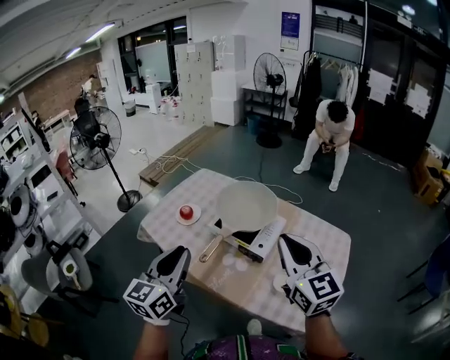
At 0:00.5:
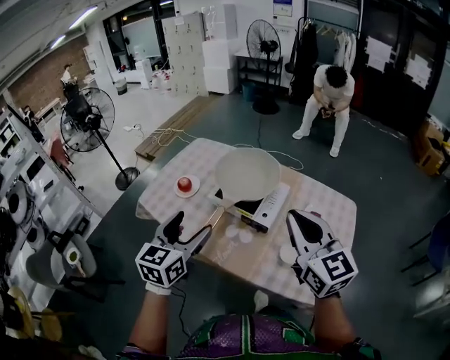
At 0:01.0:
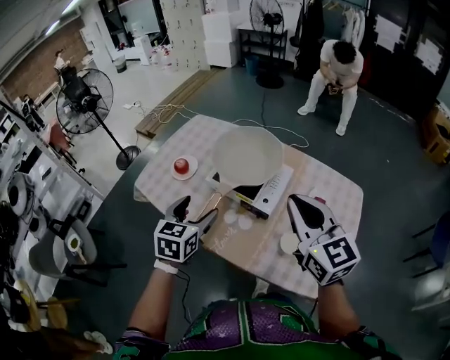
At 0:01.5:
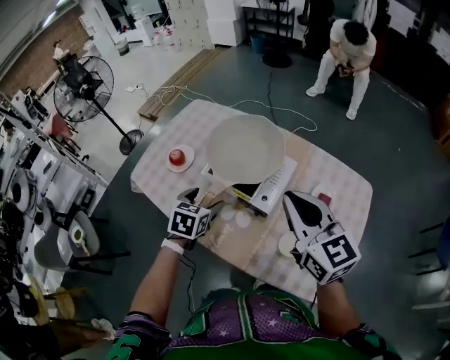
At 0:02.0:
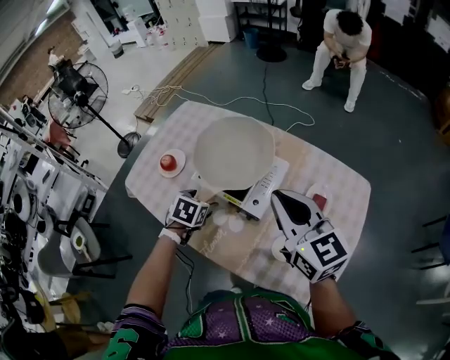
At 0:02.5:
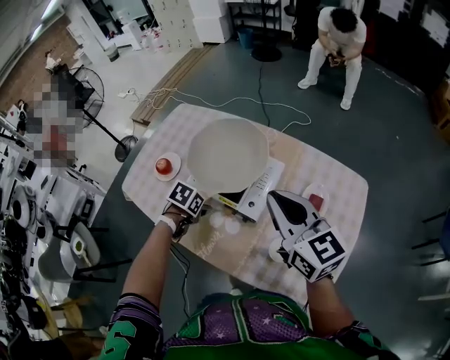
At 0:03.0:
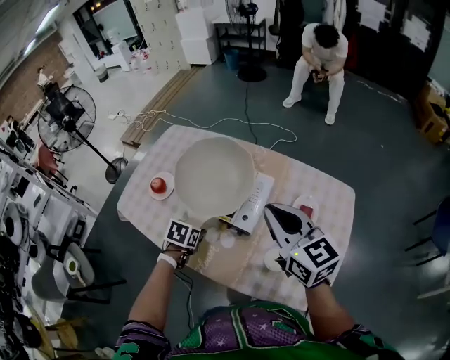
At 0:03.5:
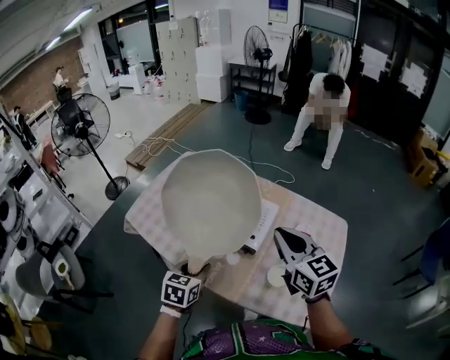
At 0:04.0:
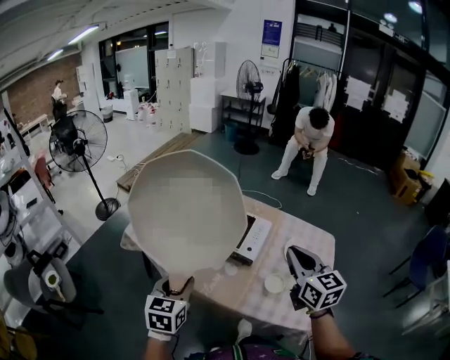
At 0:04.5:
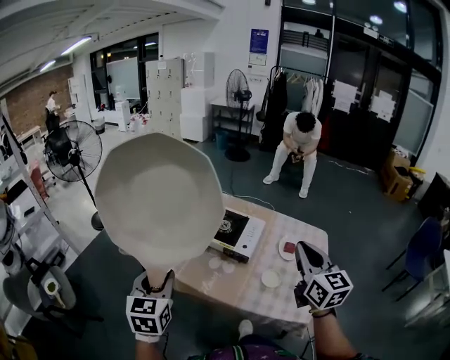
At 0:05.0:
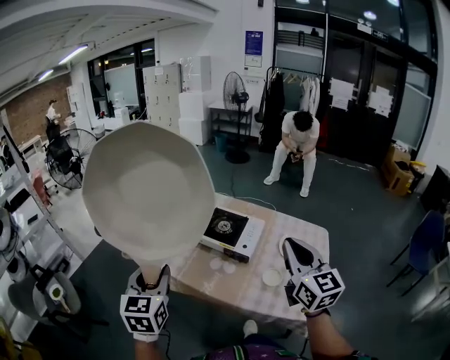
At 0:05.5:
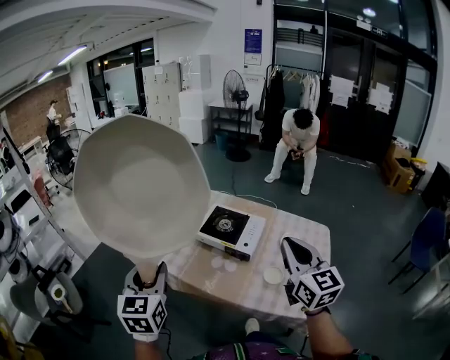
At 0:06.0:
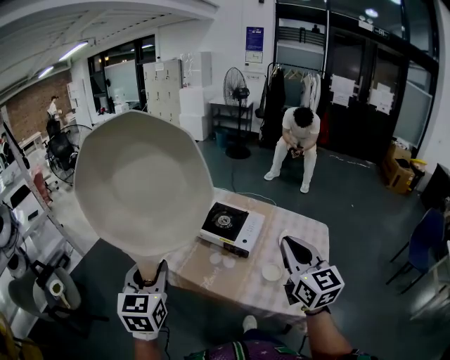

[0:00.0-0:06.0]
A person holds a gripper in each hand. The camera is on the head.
0:00.0 to 0:02.0: The left gripper goes roughly 40 cm downward and forward, tilts its fingers about 60 degrees downward, and opens; the right gripper goes roughly 20 cm forward, downward and to the right.
0:02.0 to 0:04.0: The right gripper is displaced backward by approximately 20 cm, while the left gripper is displaced backward and upward by approximately 35 cm, tilts its fingers about 40 degrees upward, and closes.
0:04.0 to 0:06.0: The left gripper travels upward, backward and to the left by some 15 cm. Meanwhile the right gripper is displaced backward and upward by about 10 cm.

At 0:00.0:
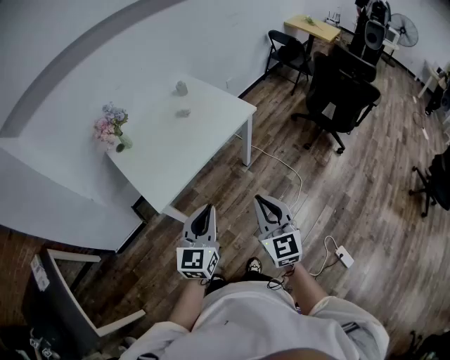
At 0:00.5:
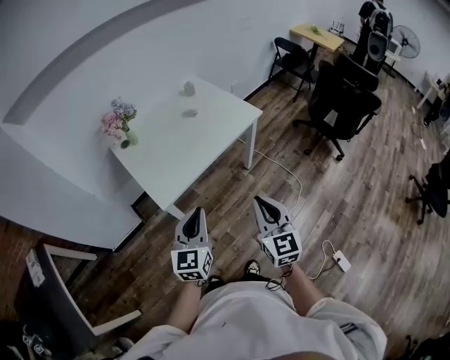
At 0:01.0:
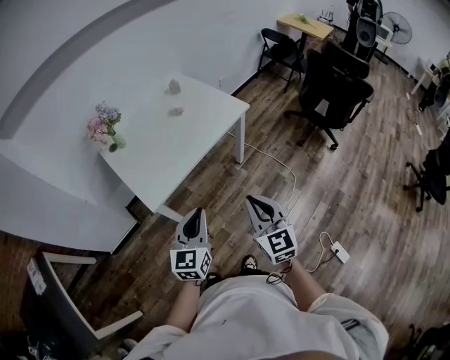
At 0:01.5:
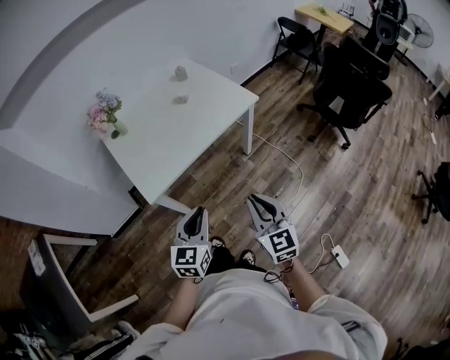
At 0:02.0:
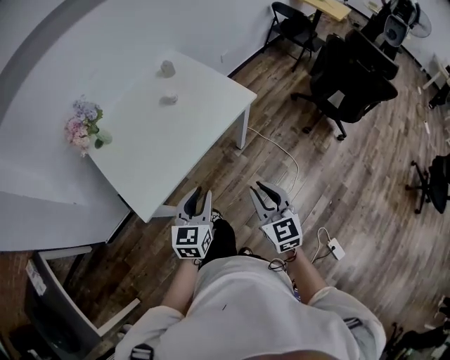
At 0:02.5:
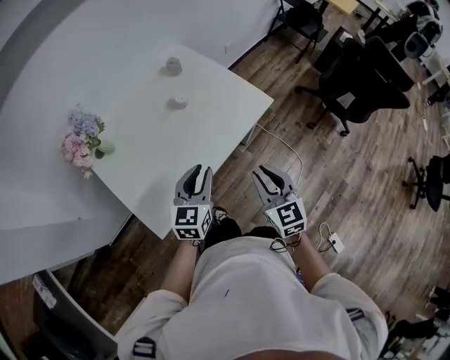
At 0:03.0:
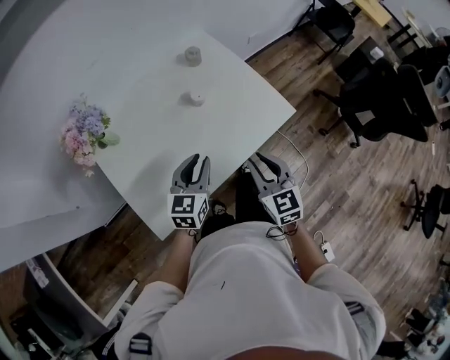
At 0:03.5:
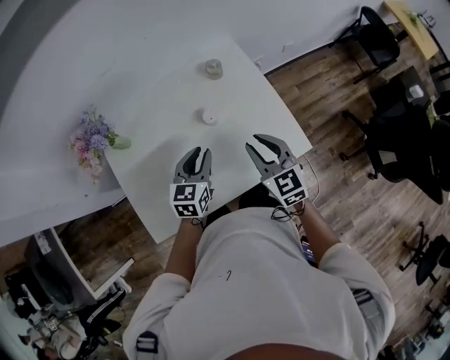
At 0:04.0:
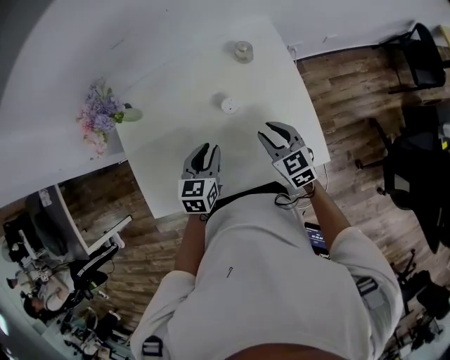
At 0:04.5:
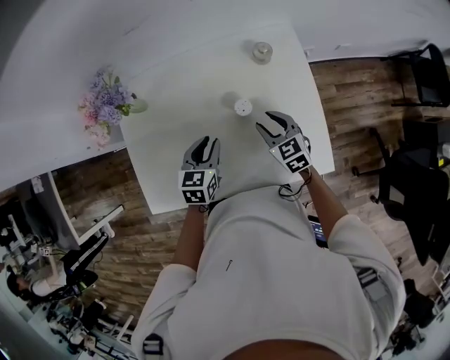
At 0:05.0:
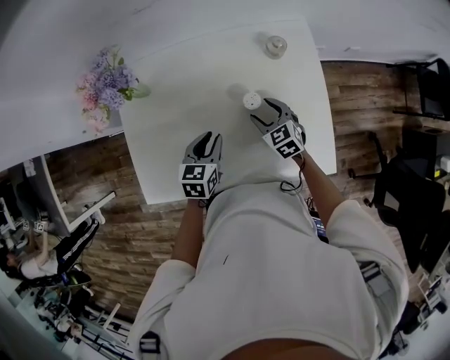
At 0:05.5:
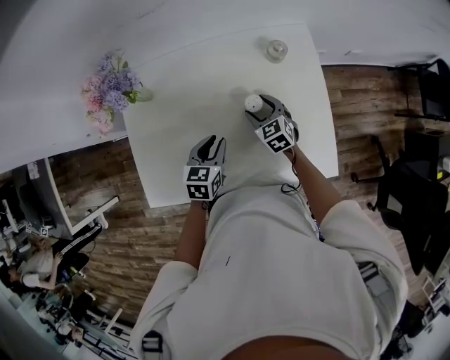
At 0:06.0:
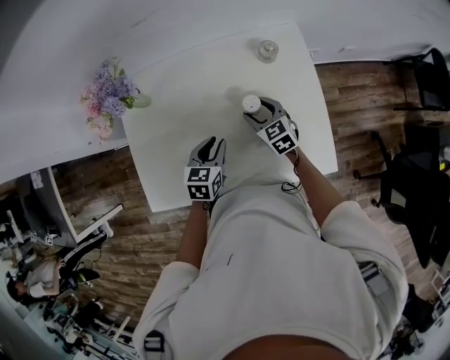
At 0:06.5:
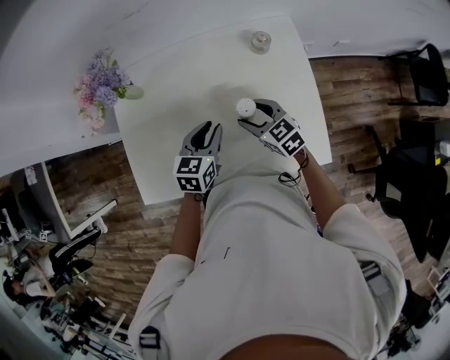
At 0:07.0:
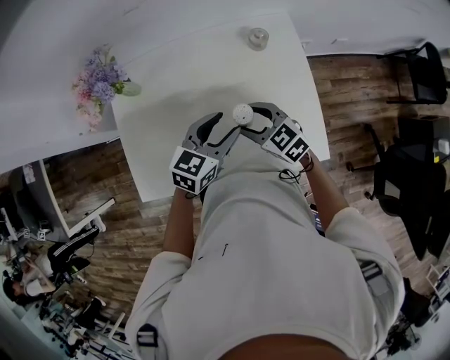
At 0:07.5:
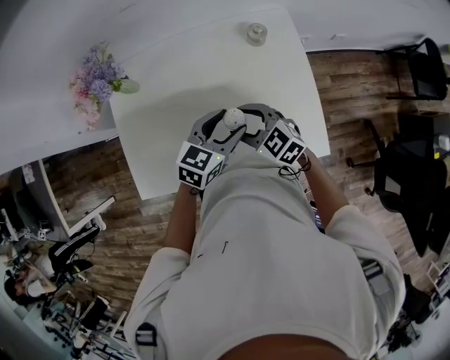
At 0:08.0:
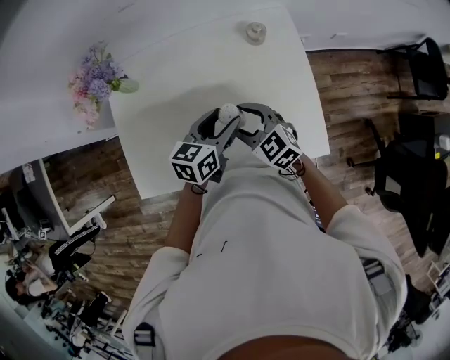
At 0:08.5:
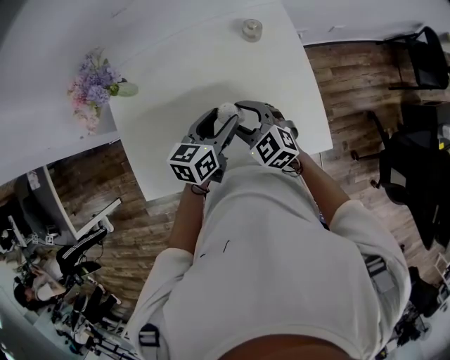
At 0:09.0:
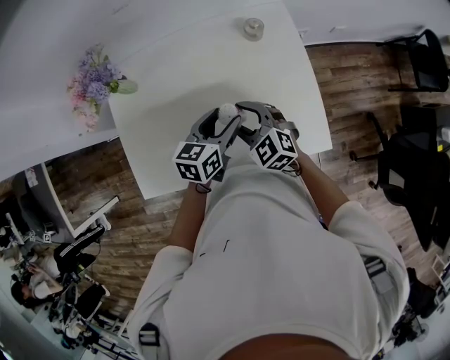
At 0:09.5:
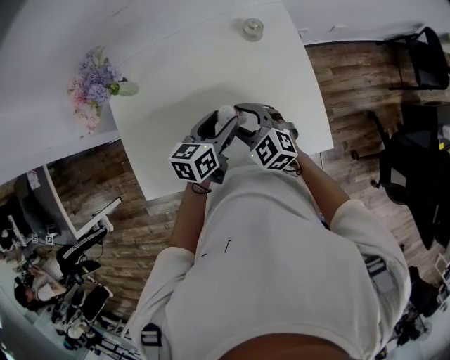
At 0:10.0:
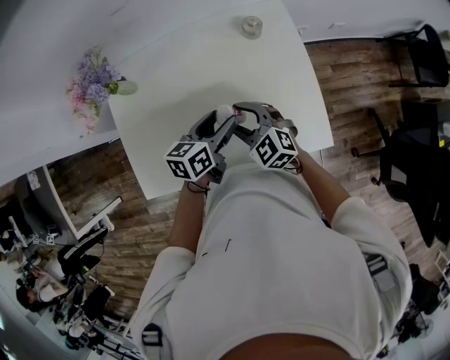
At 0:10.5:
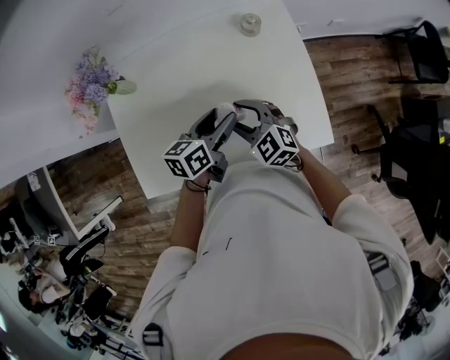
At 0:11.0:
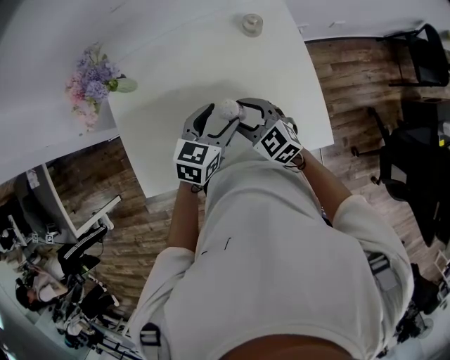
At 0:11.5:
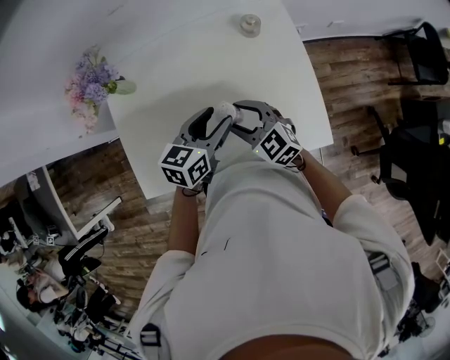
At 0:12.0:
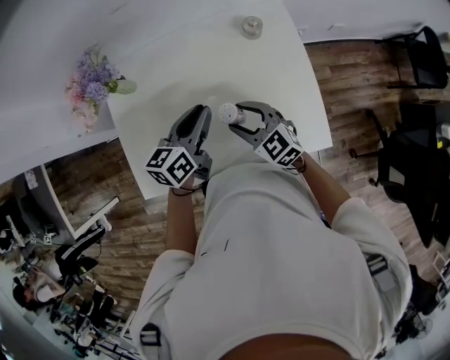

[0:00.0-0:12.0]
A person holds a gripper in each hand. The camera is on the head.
0:00.0 to 0:02.0: The grippers both shift forward and downward by about 20 cm.
0:02.0 to 0:04.0: The left gripper shifts by about 40 cm, and swivels some 30 degrees, while the right gripper ends up some 50 cm from where it was, and changes its angle by about 40 degrees.
0:04.0 to 0:06.0: The left gripper moves downward, roughly 5 cm. The right gripper goes about 15 cm forward, downward and to the left, and opens its fingers.
0:06.0 to 0:08.0: The left gripper is displaced to the right and upward by approximately 10 cm, turns by roughly 20 degrees, and opens up. Meanwhile the right gripper heads backward and upward, covering some 15 cm.
0:08.0 to 0:10.0: The grippers make only small movements.
0:10.0 to 0:12.0: The left gripper travels upward by roughly 5 cm, and closes its fingers.

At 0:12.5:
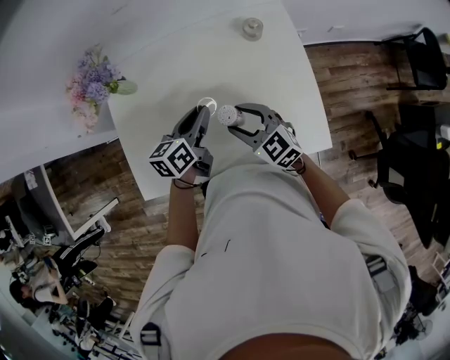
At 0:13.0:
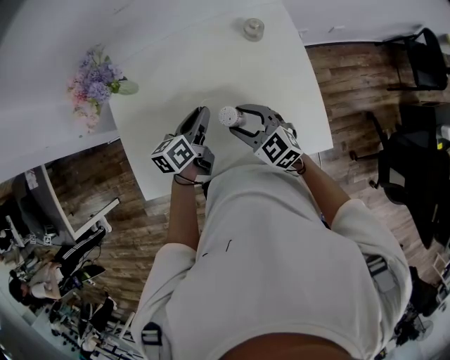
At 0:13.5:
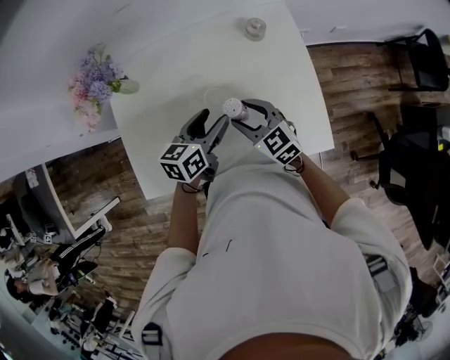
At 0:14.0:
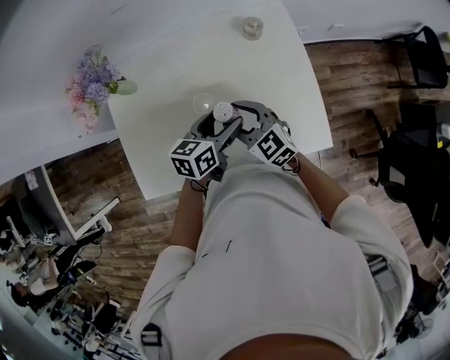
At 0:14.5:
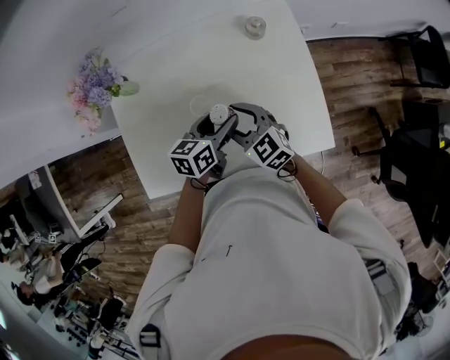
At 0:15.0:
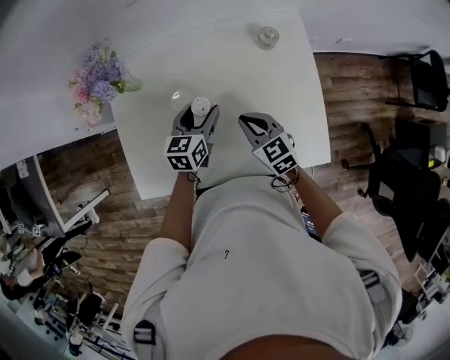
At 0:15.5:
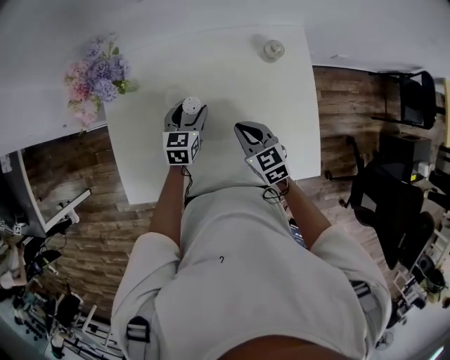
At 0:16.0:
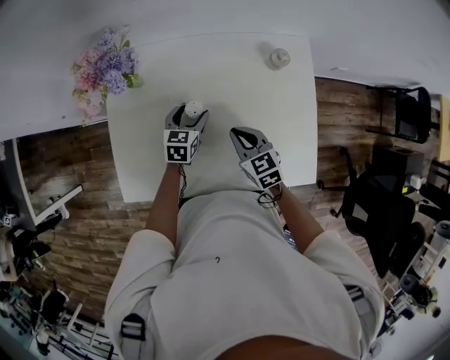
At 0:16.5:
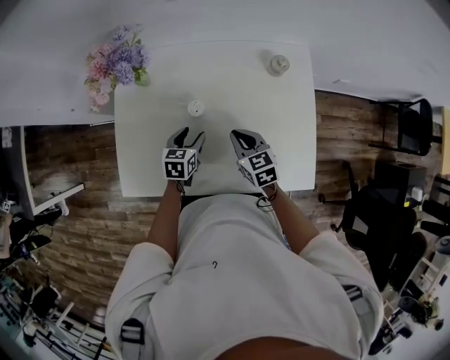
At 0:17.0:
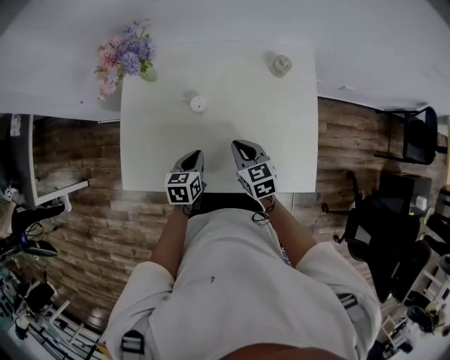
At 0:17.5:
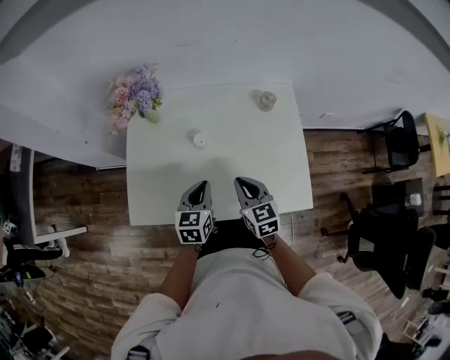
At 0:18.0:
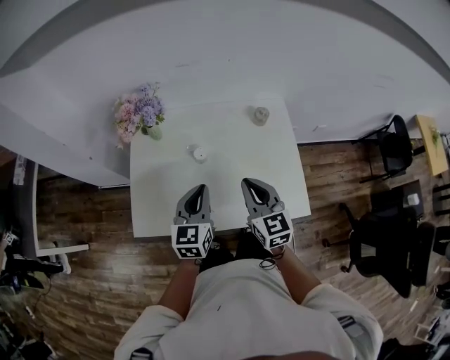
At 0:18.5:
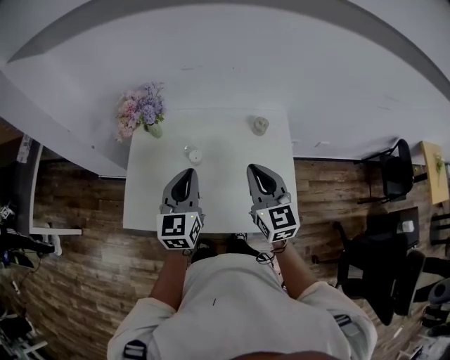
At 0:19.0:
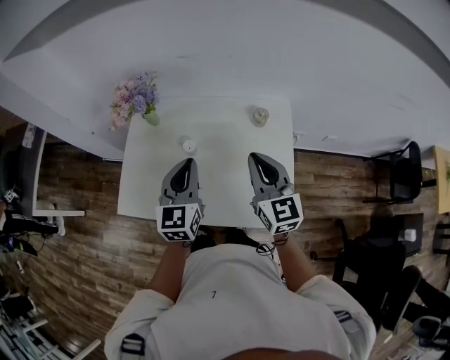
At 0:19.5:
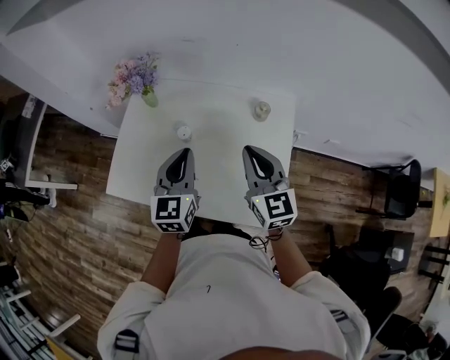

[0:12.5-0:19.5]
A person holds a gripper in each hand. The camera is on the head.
0:12.5 to 0:14.5: The left gripper moves to the right, roughly 5 cm, and opens up.
0:14.5 to 0:16.0: The right gripper closes up. The left gripper moves to the left, forward and downward, approximately 15 cm, and swivels some 20 degrees.
0:16.0 to 0:17.5: The left gripper goes roughly 20 cm backward and upward, and closes up. The right gripper heads backward and upward, covering roughly 15 cm.
0:17.5 to 0:19.5: The left gripper moves upward and to the right, about 20 cm, and changes its angle by about 30 degrees. The right gripper shifts about 20 cm upward, to the right and forward, and rotates about 20 degrees.

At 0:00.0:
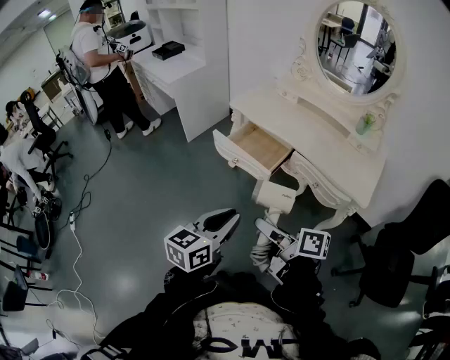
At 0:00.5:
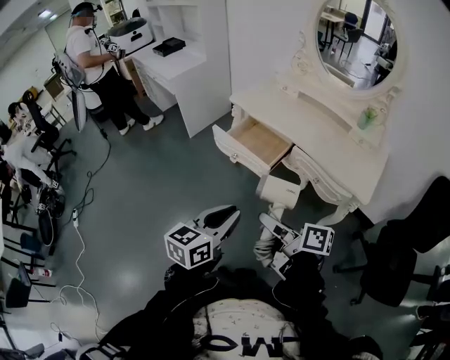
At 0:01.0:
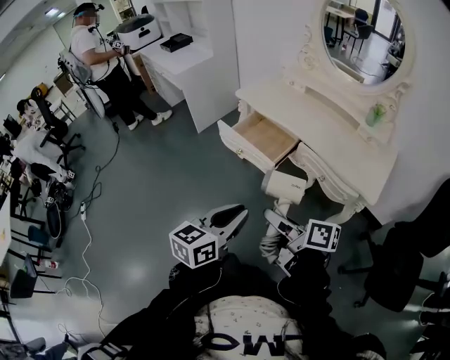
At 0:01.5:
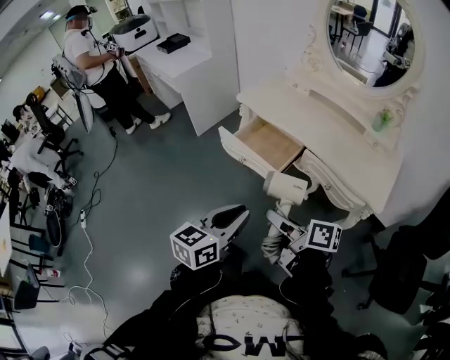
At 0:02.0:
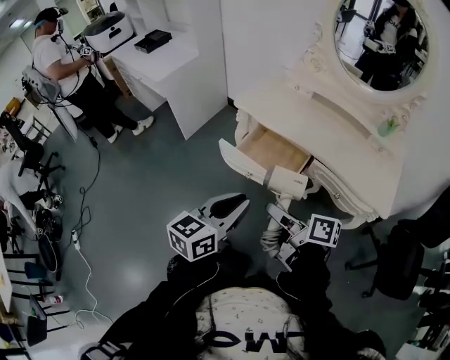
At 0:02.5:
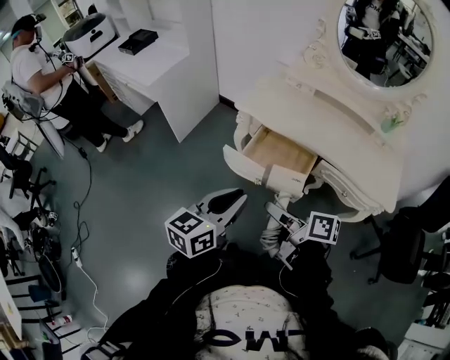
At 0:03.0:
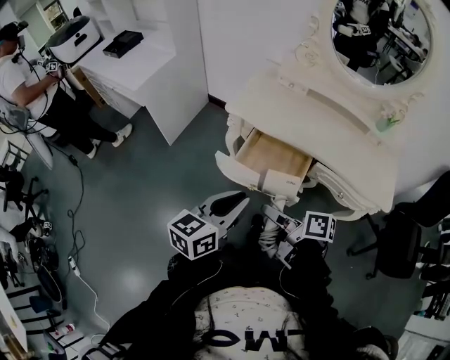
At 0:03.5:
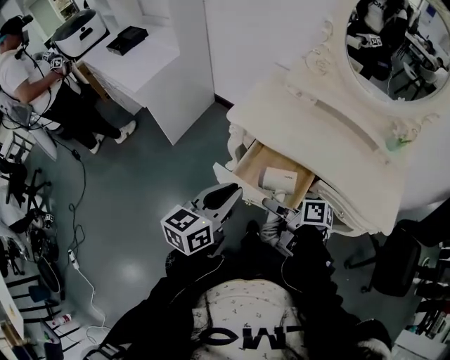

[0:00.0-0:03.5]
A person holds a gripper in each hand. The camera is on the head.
0:00.0 to 0:02.0: The two grippers go some 20 cm forward.
0:02.0 to 0:03.5: The right gripper shifts approximately 20 cm forward and downward. The left gripper is displaced forward by about 20 cm.
